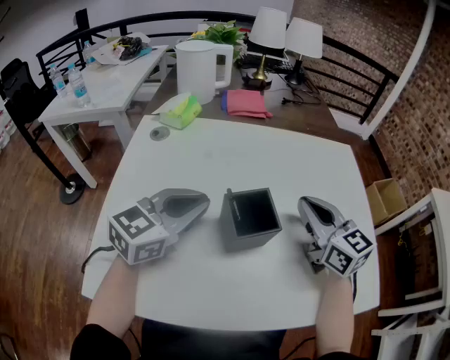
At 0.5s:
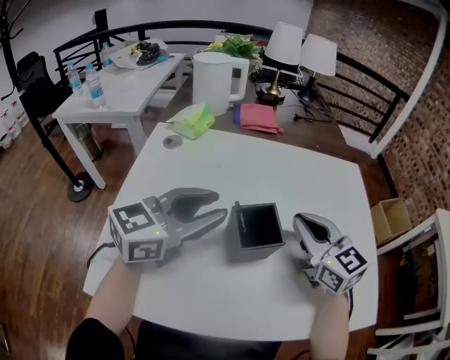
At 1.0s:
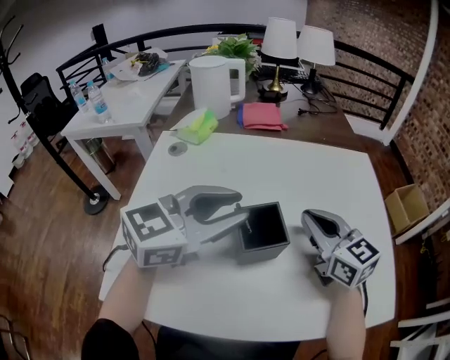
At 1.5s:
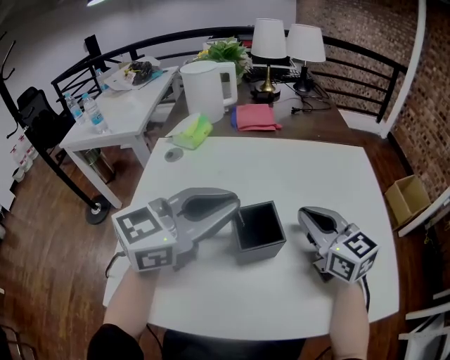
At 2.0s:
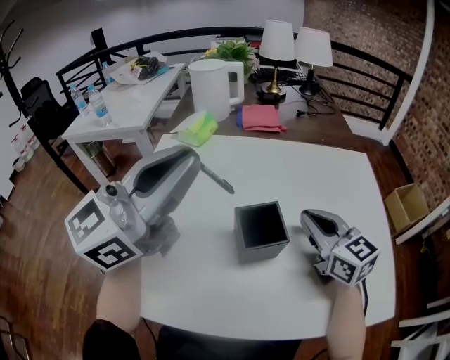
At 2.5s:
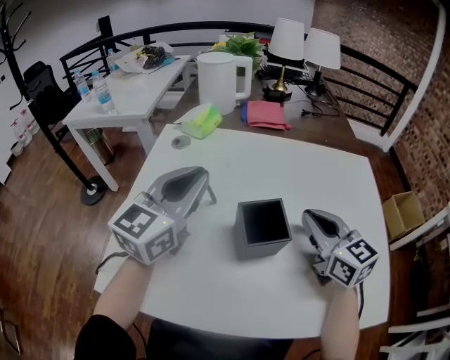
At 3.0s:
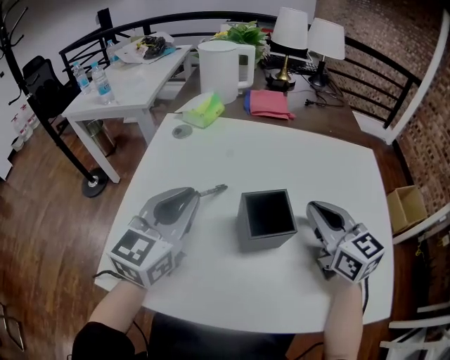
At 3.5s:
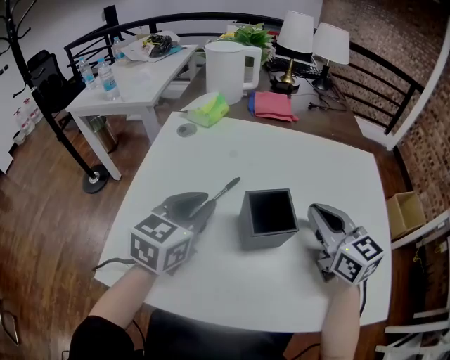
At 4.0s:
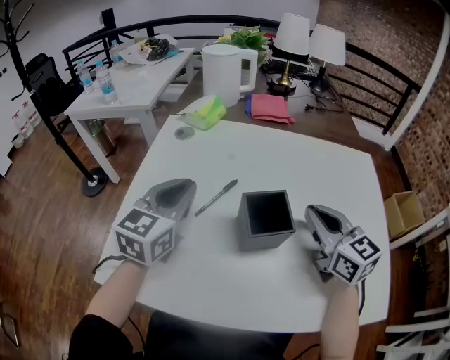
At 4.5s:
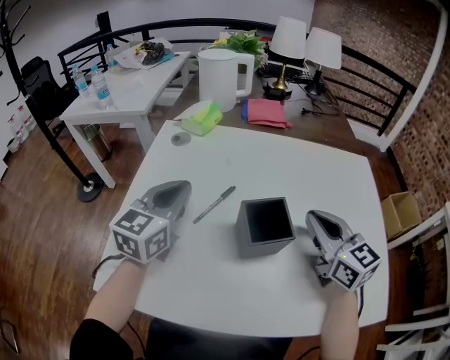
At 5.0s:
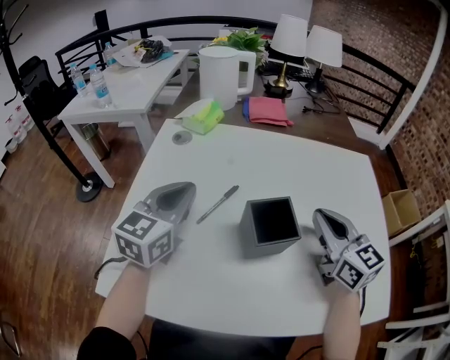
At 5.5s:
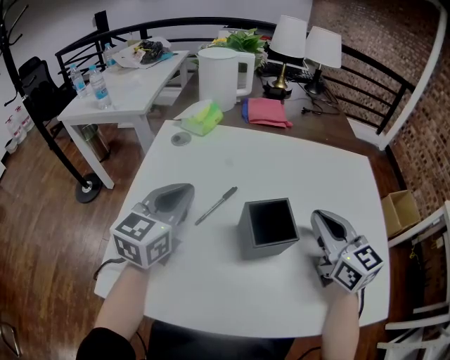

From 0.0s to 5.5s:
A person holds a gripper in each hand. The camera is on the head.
From 0.0s to 2.0s: The left gripper shifts some 20 cm upward, rotates roughly 30 degrees, and opens and closes again.
From 2.0s to 3.5s: The left gripper goes some 20 cm downward, and angles its fingers downward, by about 40 degrees.
From 3.5s to 5.5s: The left gripper moves approximately 5 cm.

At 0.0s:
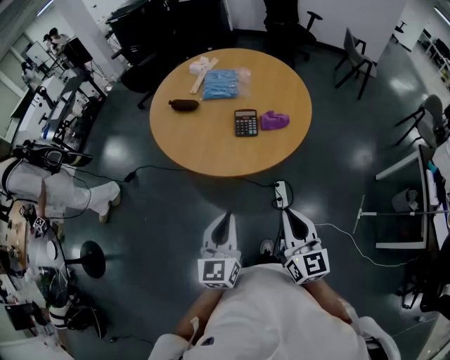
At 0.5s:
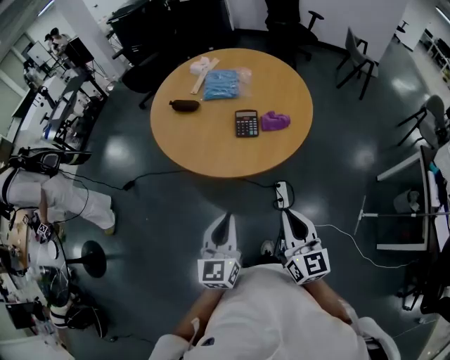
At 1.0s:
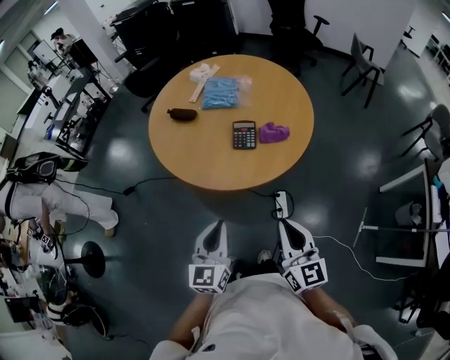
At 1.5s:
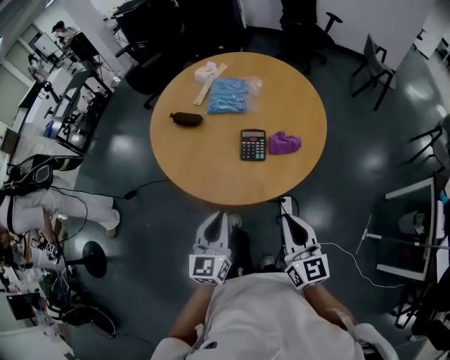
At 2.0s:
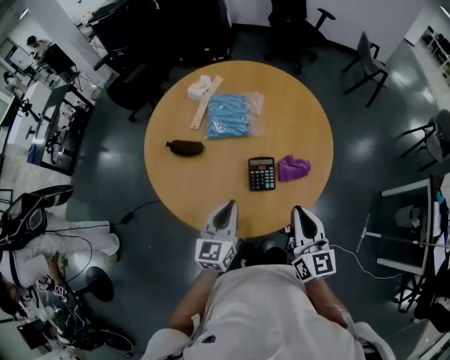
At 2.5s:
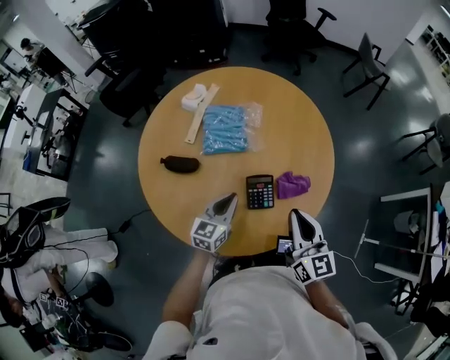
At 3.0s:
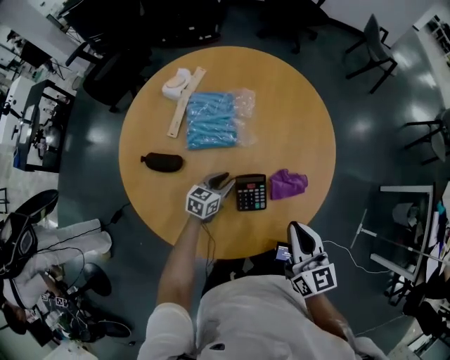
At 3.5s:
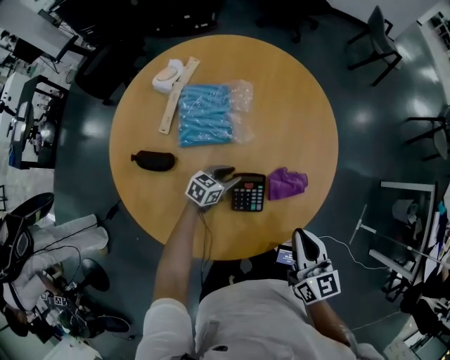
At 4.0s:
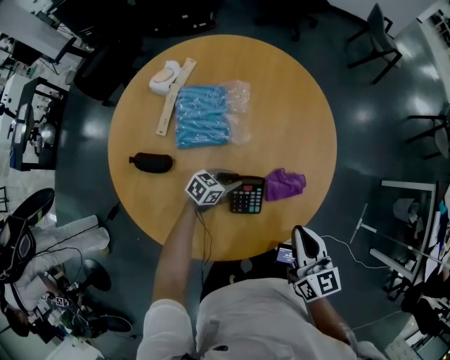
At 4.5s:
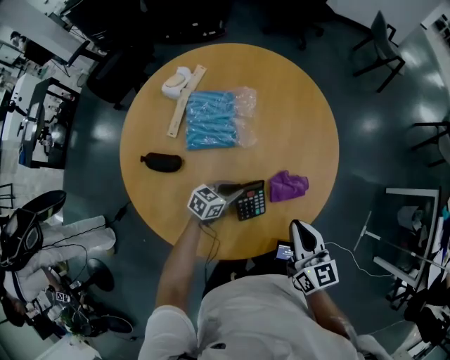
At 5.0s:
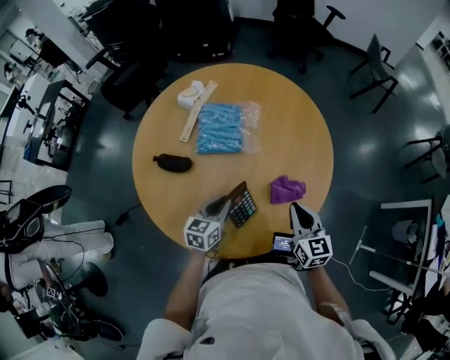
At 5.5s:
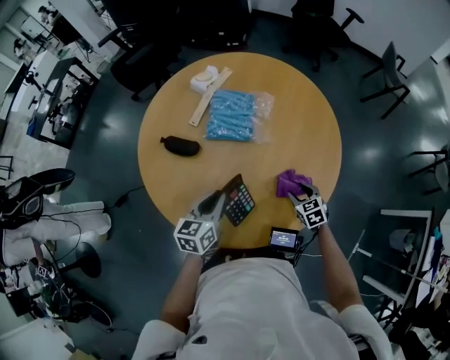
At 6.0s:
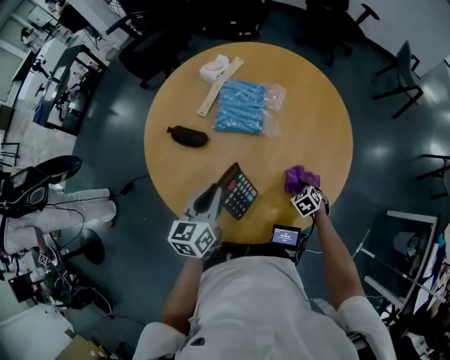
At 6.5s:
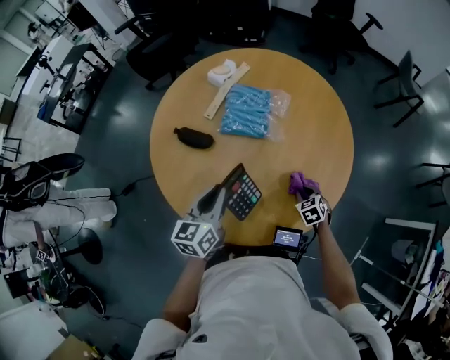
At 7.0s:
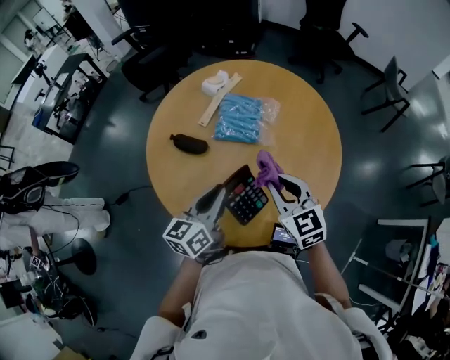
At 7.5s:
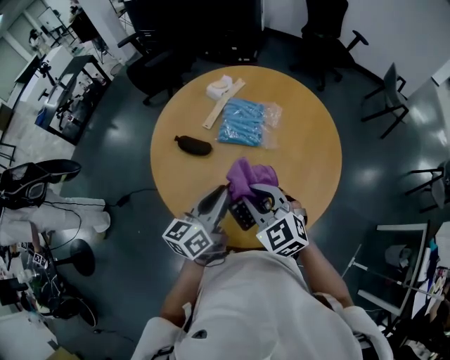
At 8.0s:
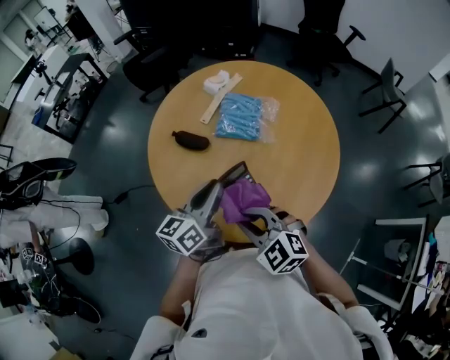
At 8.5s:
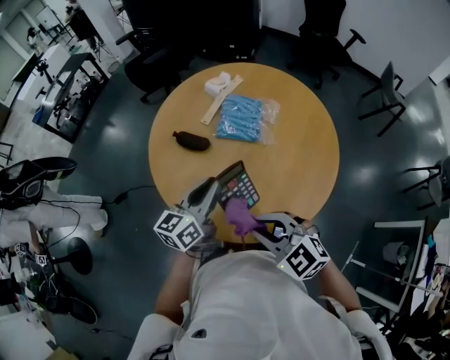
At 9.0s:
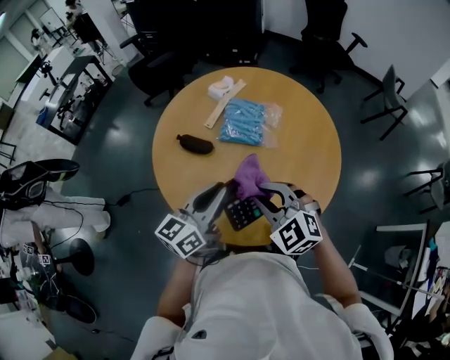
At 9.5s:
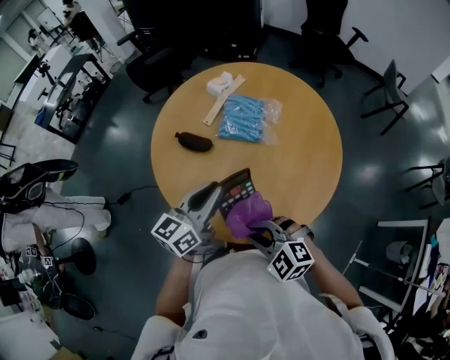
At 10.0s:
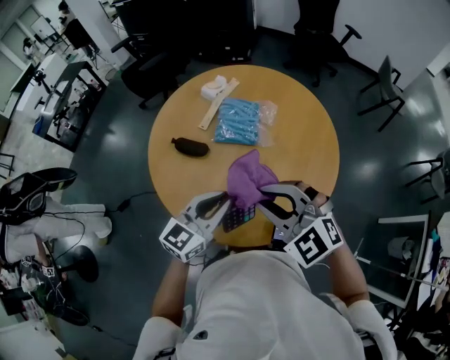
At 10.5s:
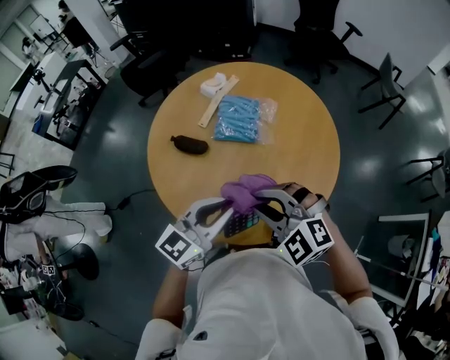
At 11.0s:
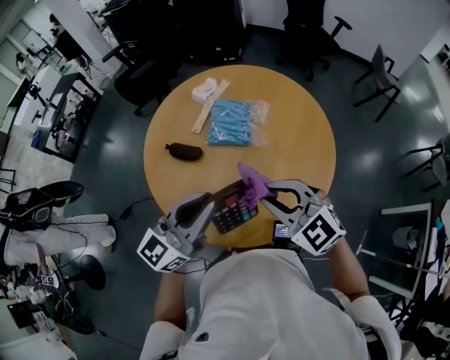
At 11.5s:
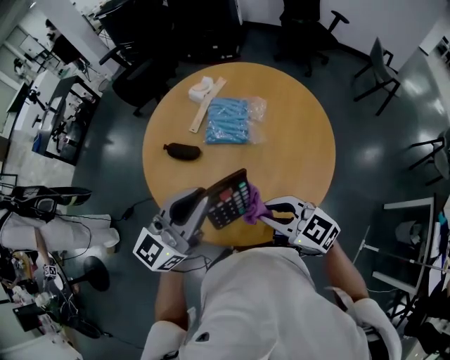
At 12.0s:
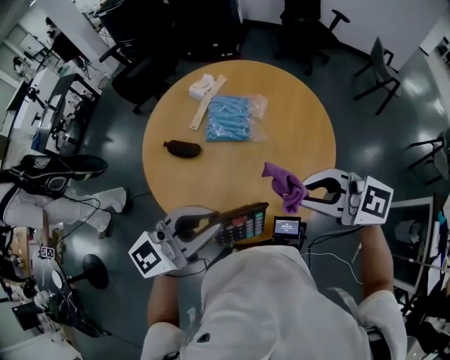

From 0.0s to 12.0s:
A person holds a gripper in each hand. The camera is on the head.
From 0.0s to 2.0s: The two grippers go some 35 cm forward.
From 2.0s to 4.0s: The left gripper goes approximately 30 cm downward, changes its angle by about 60 degrees, and opens up; the right gripper moves approximately 15 cm.
From 4.0s to 6.0s: The right gripper moves downward, about 25 cm, points its fingers approximately 50 degrees further downward, and opens, while the left gripper is displaced upward by about 25 cm, and rotates roughly 60 degrees.
From 6.0s to 8.0s: The right gripper travels upward and to the left by some 40 cm, and points its fingers roughly 30 degrees further upward. Meanwhile the left gripper heads upward, covering approximately 10 cm, and changes its angle by about 20 degrees.
From 8.0s to 10.0s: The right gripper moves up and down over roughly 15 cm, changing direction 2 times, while the left gripper changes its angle by roughly 30 degrees.
From 10.0s to 12.0s: The right gripper goes downward and returns, approximately 10 cm each way, and changes its angle by roughly 40 degrees; the left gripper moves upward, about 15 cm, and rotates approximately 30 degrees.

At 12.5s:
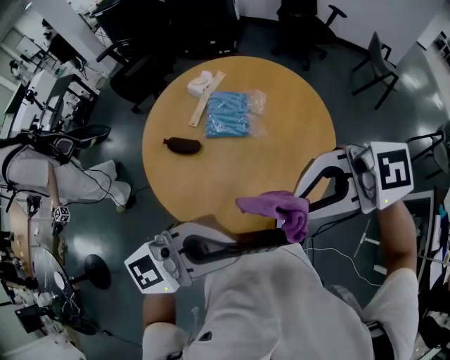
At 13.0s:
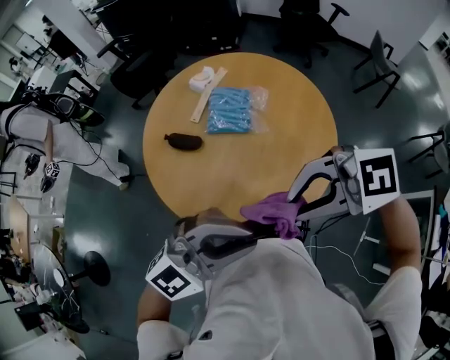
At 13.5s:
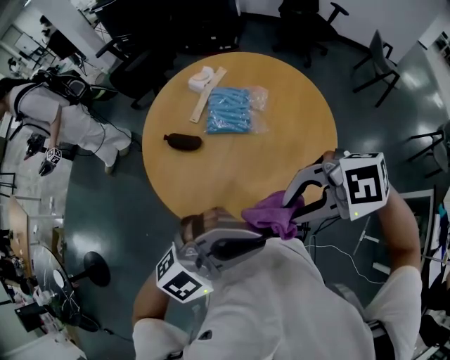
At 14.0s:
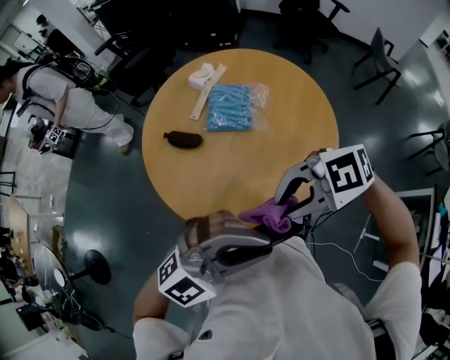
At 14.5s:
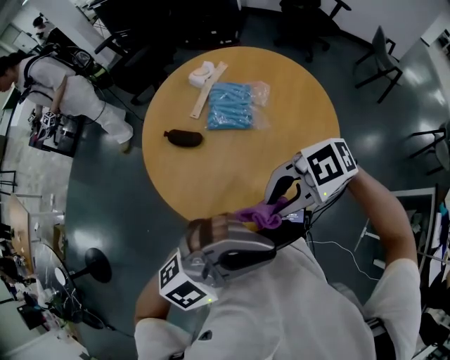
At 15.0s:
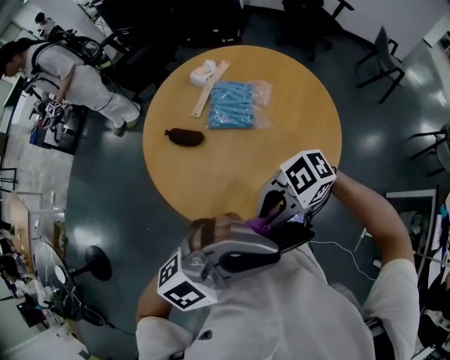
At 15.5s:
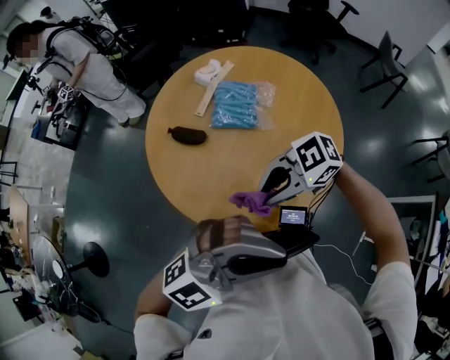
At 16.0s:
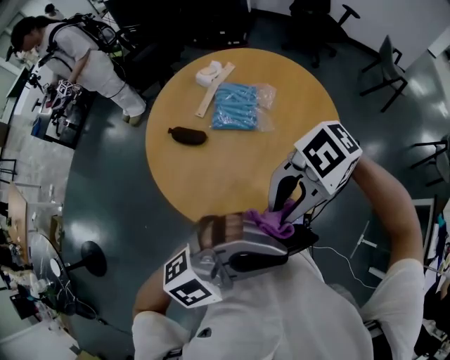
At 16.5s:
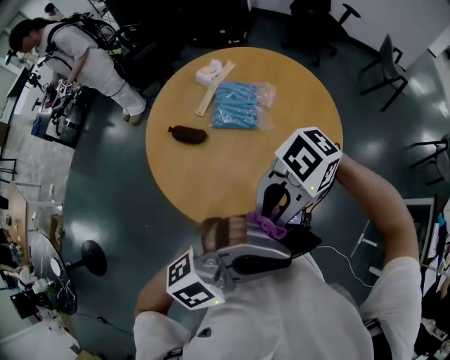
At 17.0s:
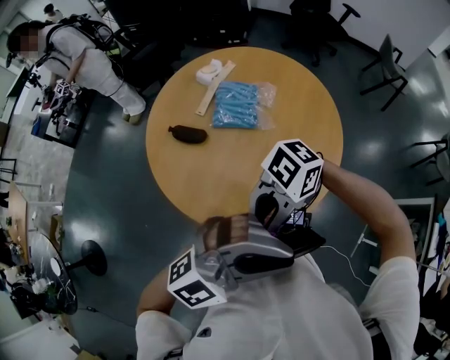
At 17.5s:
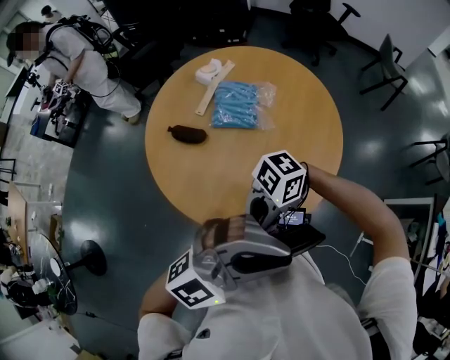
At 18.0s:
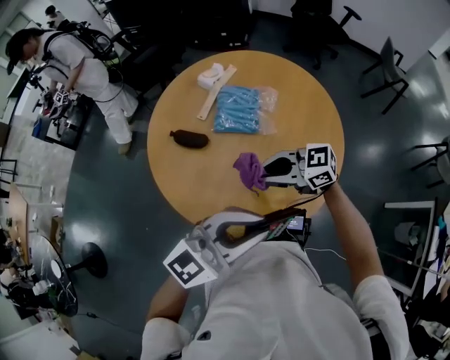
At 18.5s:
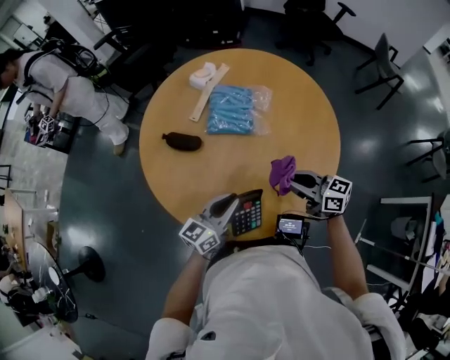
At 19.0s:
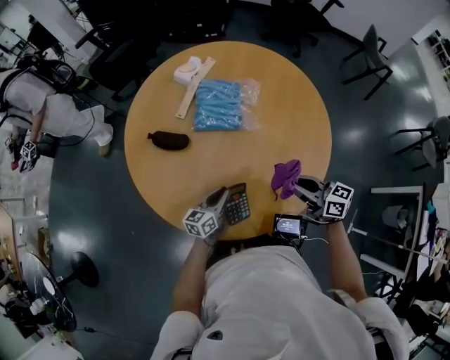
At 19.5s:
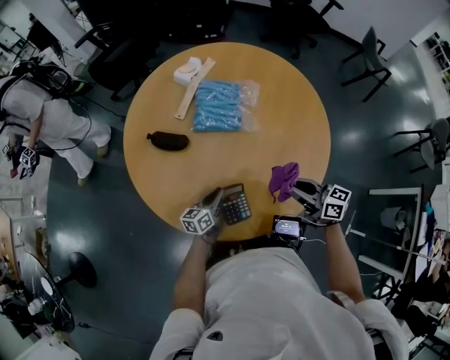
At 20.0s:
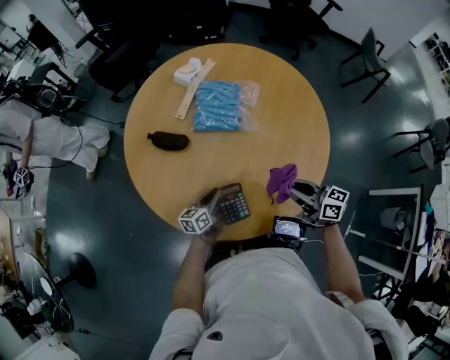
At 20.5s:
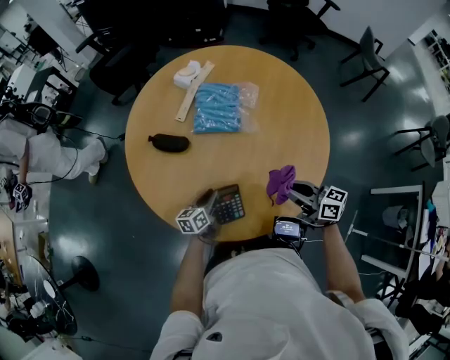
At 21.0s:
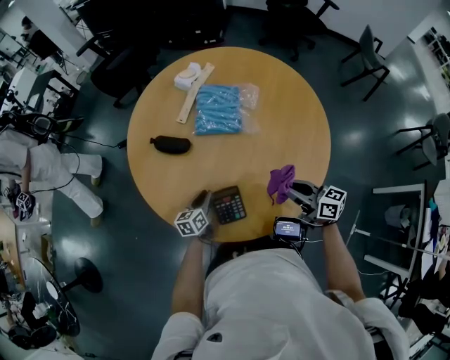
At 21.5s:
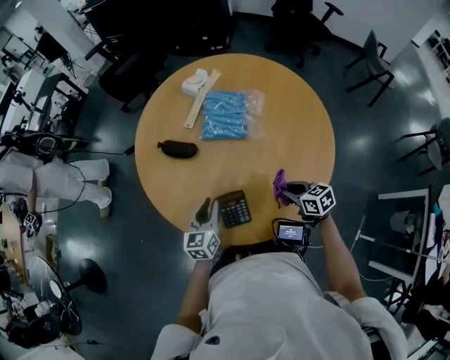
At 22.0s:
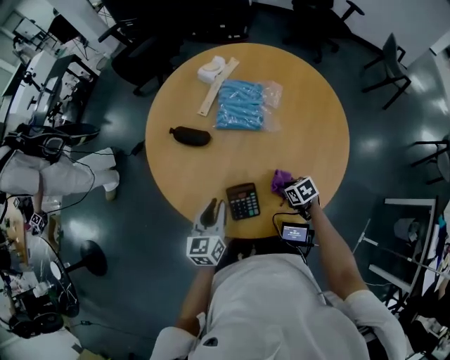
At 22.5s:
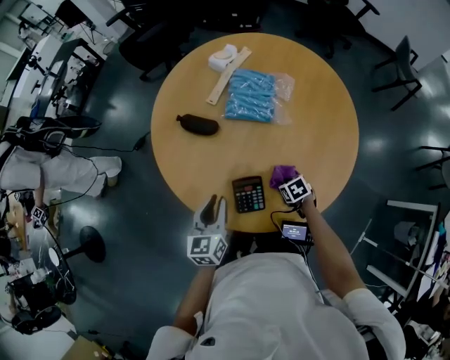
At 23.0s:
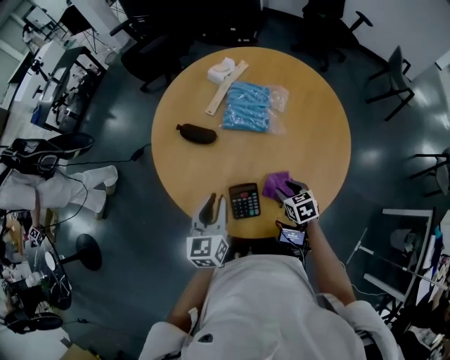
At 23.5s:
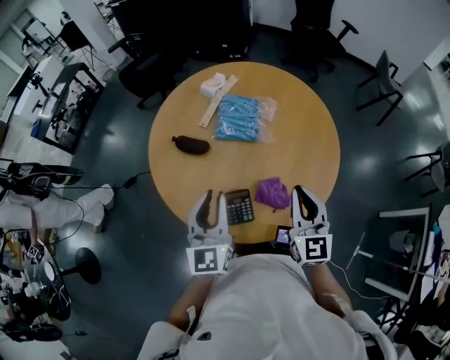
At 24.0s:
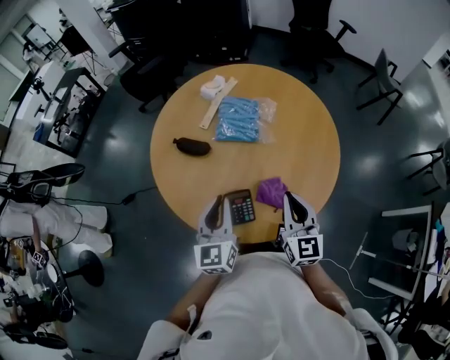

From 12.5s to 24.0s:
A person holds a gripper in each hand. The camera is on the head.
From 12.5s to 14.5s: The left gripper changes place by approximately 5 cm, and swivels approximately 30 degrees; the right gripper moves downward, about 15 cm, and turns by approximately 30 degrees.
From 14.5s to 16.5s: The right gripper goes upward and returns, approximately 5 cm each way, and turns by some 20 degrees.
From 16.5s to 18.5s: The left gripper is displaced downward by some 30 cm, and rolls counterclockwise, seen from behind, by roughly 60 degrees. Meanwhile the right gripper goes roughly 20 cm downward, and turns by roughly 90 degrees.
From 18.5s to 20.0s: The left gripper heads downward, covering about 20 cm, and changes its angle by about 30 degrees.
From 20.0s to 22.0s: The left gripper shifts approximately 15 cm upward, and rotates about 30 degrees. The right gripper shifts approximately 20 cm downward, and tips its fingers downward by roughly 50 degrees.
From 22.0s to 24.0s: The left gripper moves upward, roughly 15 cm, while the right gripper heads upward, covering roughly 30 cm, tilts its fingers some 50 degrees upward, and opens and closes again.
